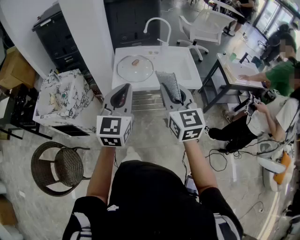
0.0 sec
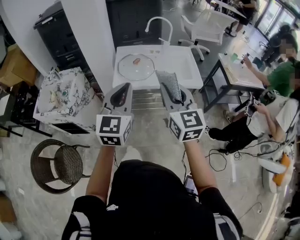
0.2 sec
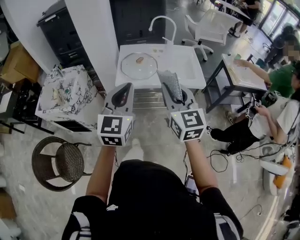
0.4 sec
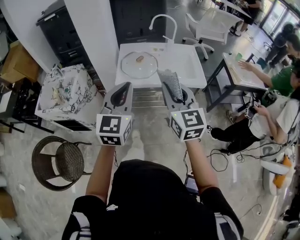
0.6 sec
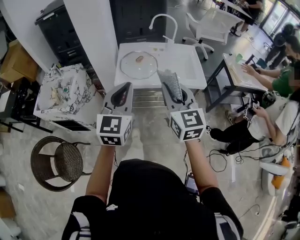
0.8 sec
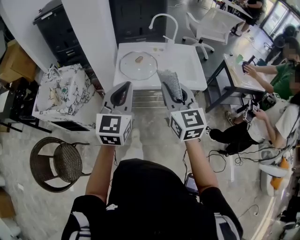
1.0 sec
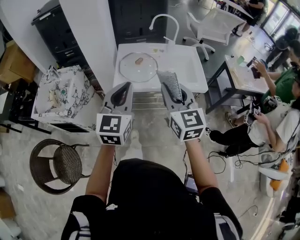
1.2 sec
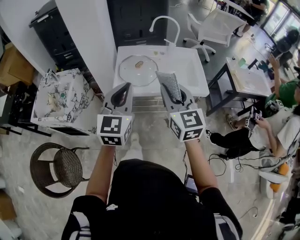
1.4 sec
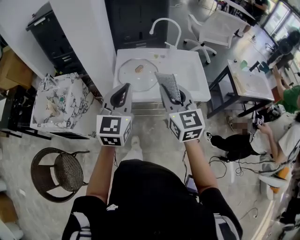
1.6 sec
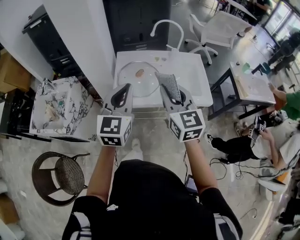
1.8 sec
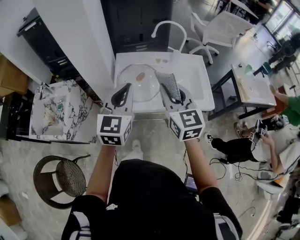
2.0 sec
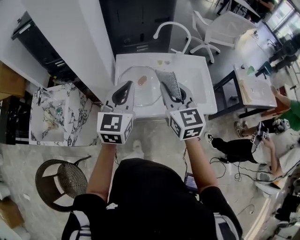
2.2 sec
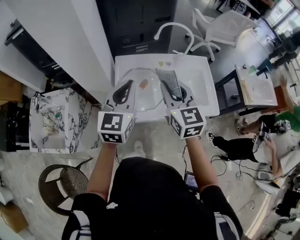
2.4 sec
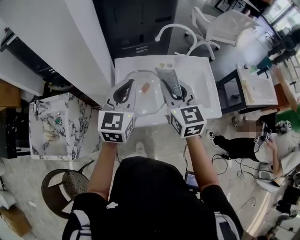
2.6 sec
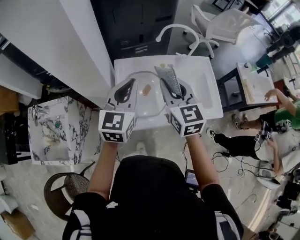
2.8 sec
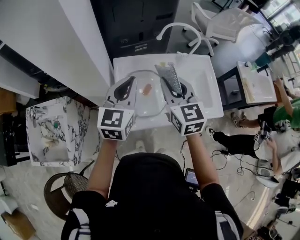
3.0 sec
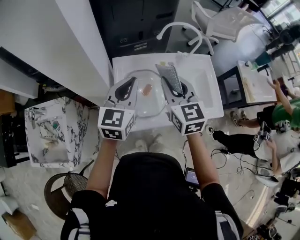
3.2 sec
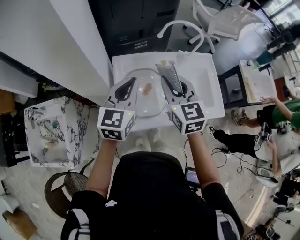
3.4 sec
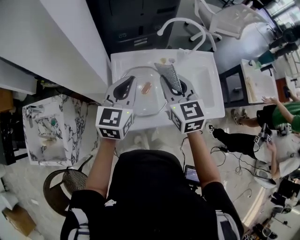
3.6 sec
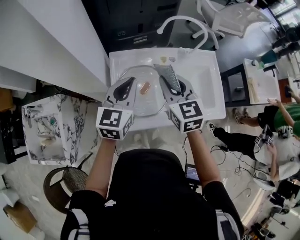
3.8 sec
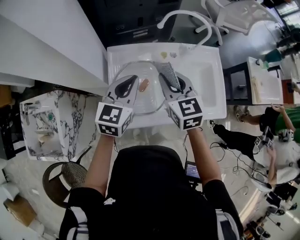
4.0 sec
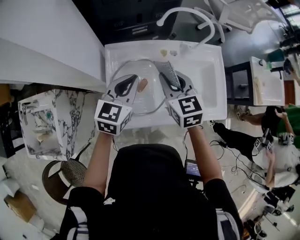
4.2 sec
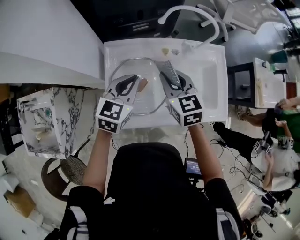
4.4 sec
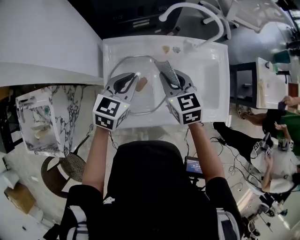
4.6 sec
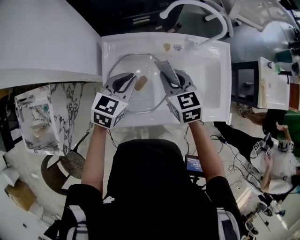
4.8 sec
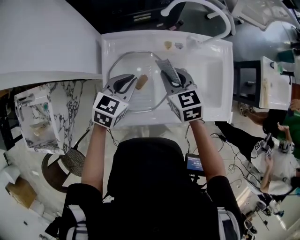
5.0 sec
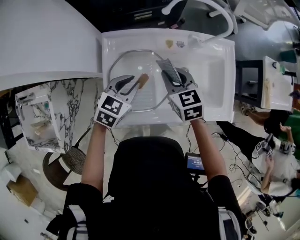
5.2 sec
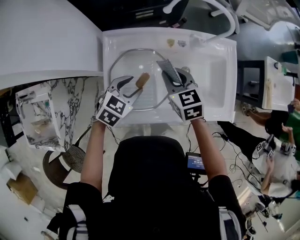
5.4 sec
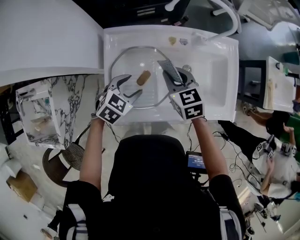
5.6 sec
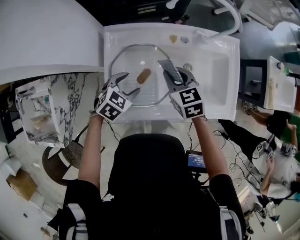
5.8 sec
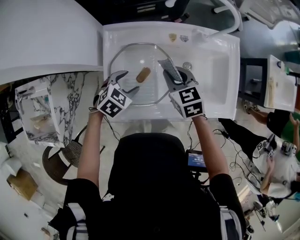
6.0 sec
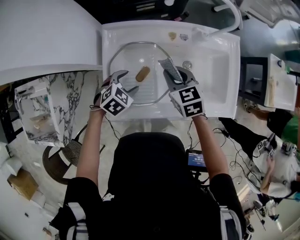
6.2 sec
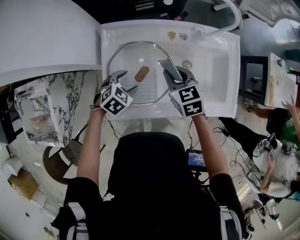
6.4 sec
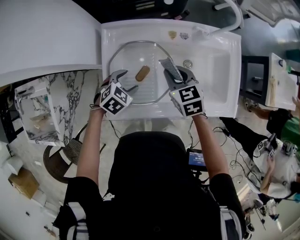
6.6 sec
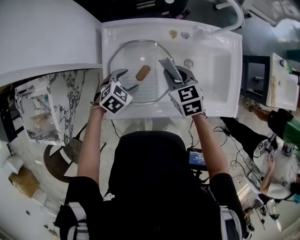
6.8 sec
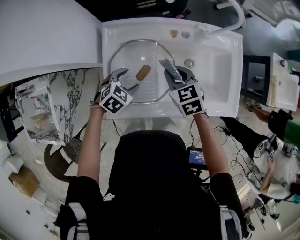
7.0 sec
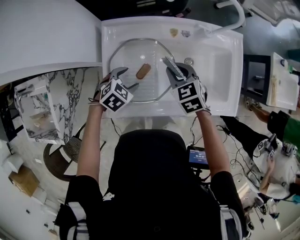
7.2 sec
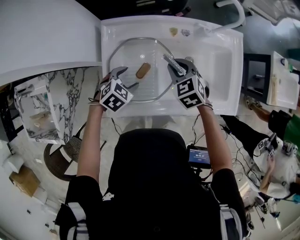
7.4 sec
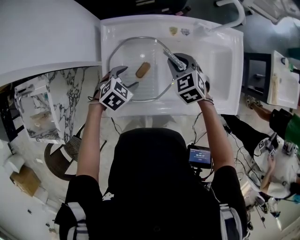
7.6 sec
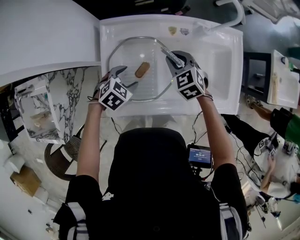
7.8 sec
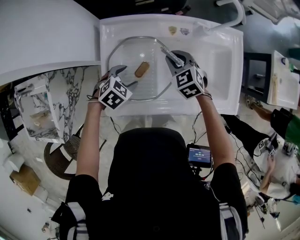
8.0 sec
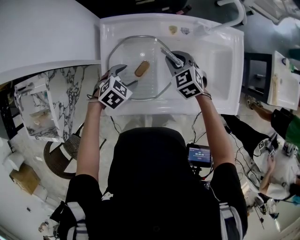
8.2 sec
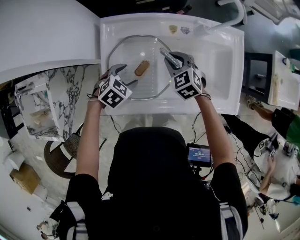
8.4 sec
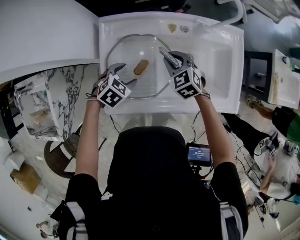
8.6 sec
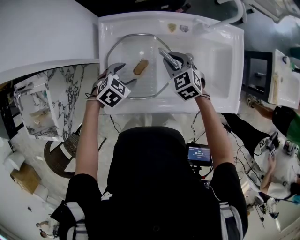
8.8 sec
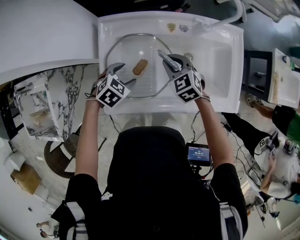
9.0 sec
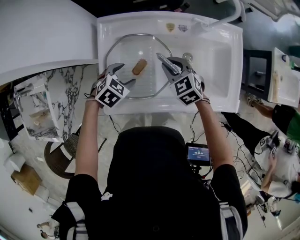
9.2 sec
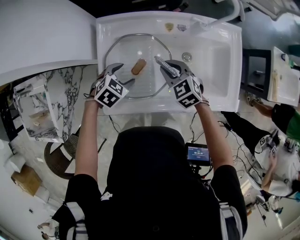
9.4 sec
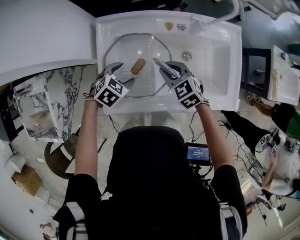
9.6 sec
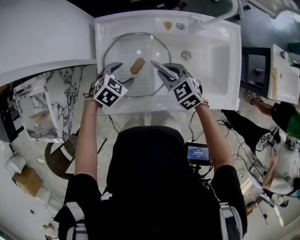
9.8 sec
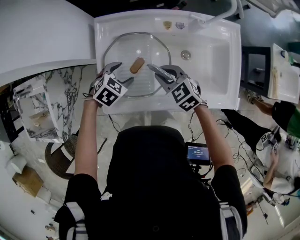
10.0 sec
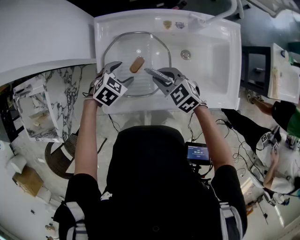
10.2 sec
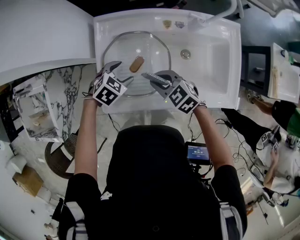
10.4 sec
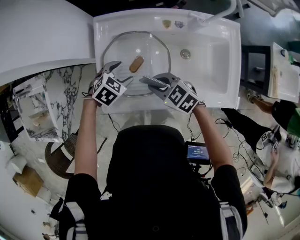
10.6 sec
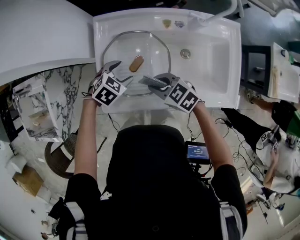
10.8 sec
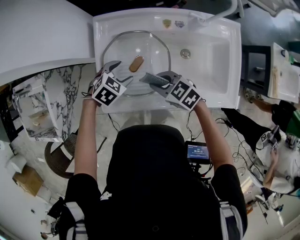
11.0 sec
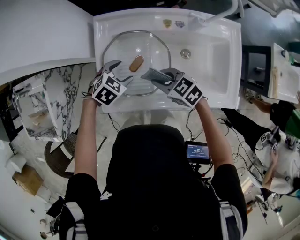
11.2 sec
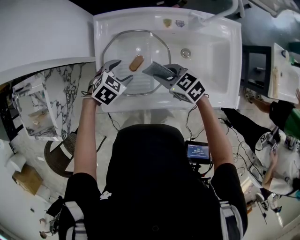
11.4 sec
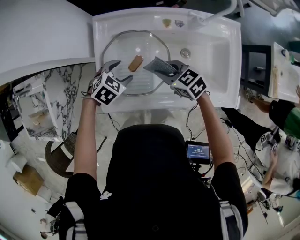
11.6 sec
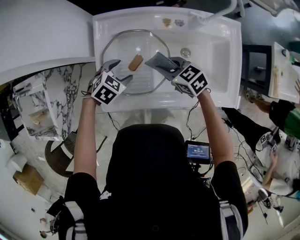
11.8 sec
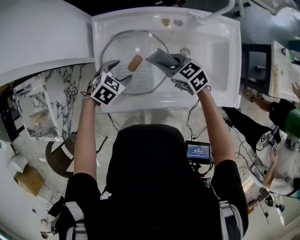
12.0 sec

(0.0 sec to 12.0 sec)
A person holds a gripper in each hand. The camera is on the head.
0.0 sec - 1.6 sec: The two grippers go approximately 15 cm forward.
1.6 sec - 3.0 sec: The two grippers go approximately 30 cm forward.
3.0 sec - 4.4 sec: Both grippers move downward and forward, roughly 15 cm.
4.4 sec - 6.0 sec: The left gripper goes roughly 15 cm downward, tilts its fingers about 30 degrees downward, and opens. Meanwhile the right gripper travels downward by about 10 cm.
6.0 sec - 7.6 sec: The right gripper shifts by some 5 cm, and turns by some 20 degrees.
7.6 sec - 9.0 sec: The grippers make only small movements.
9.0 sec - 10.4 sec: The right gripper is displaced backward by approximately 10 cm, and swivels about 20 degrees.
10.4 sec - 12.0 sec: The right gripper moves about 10 cm.

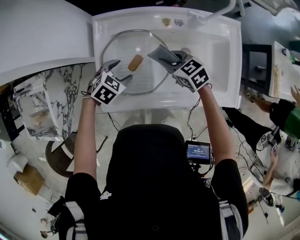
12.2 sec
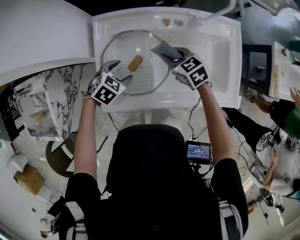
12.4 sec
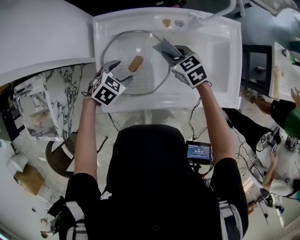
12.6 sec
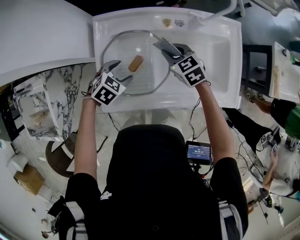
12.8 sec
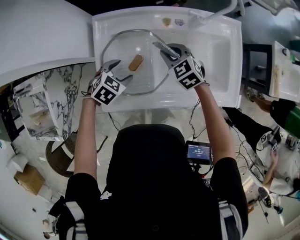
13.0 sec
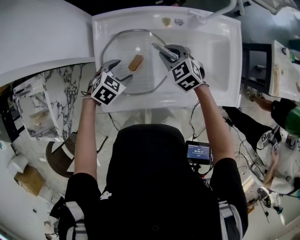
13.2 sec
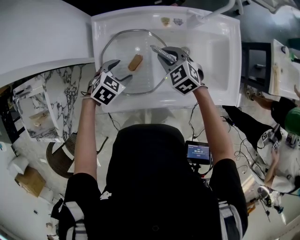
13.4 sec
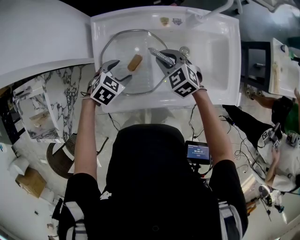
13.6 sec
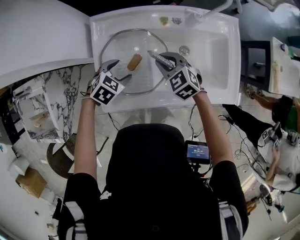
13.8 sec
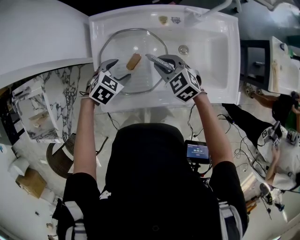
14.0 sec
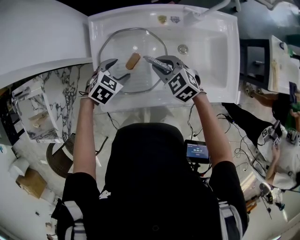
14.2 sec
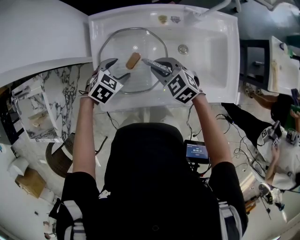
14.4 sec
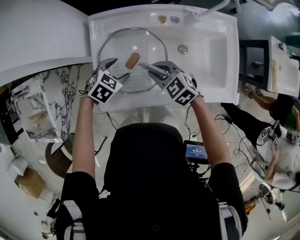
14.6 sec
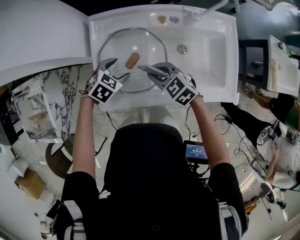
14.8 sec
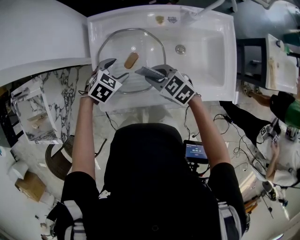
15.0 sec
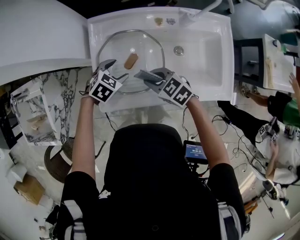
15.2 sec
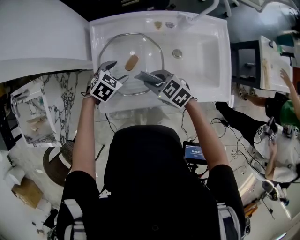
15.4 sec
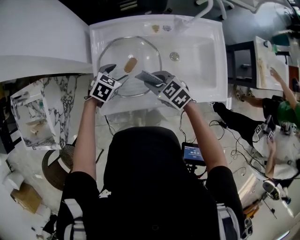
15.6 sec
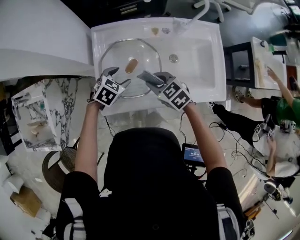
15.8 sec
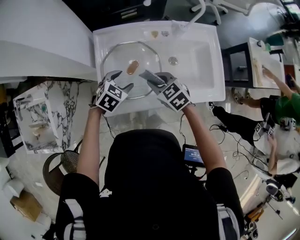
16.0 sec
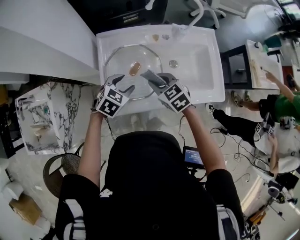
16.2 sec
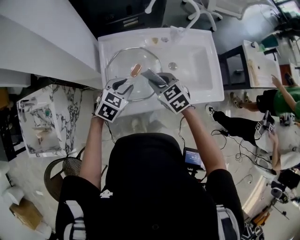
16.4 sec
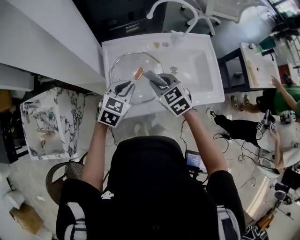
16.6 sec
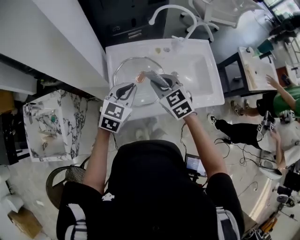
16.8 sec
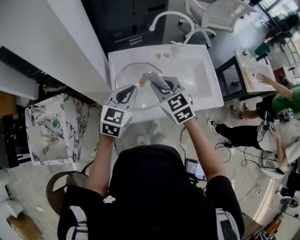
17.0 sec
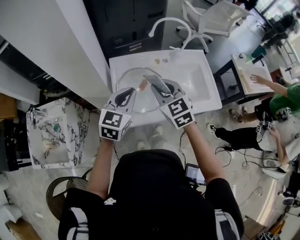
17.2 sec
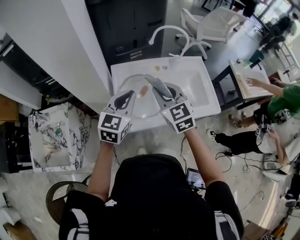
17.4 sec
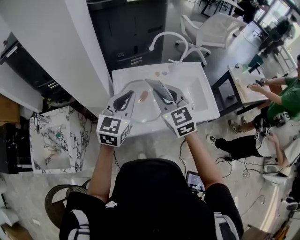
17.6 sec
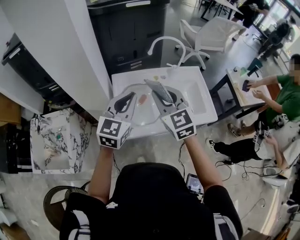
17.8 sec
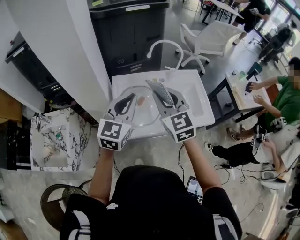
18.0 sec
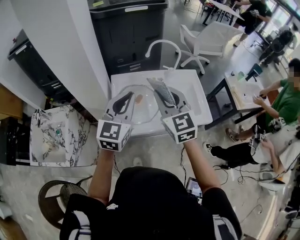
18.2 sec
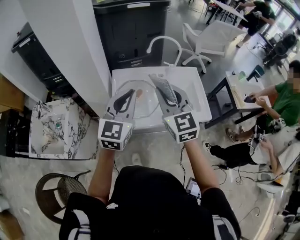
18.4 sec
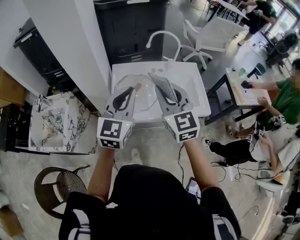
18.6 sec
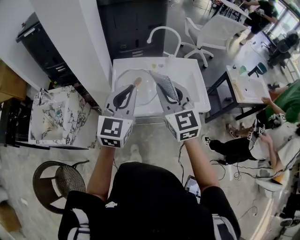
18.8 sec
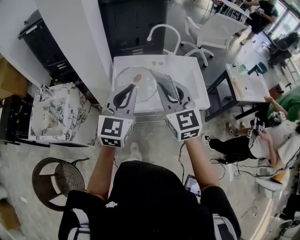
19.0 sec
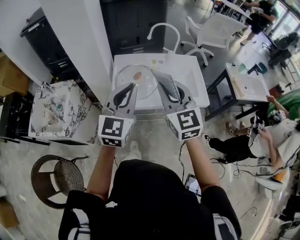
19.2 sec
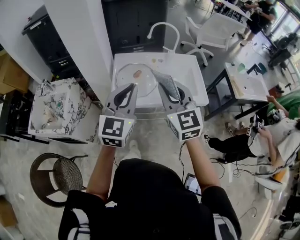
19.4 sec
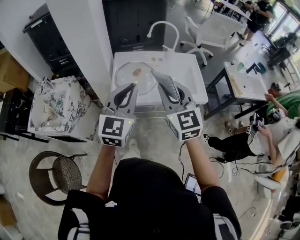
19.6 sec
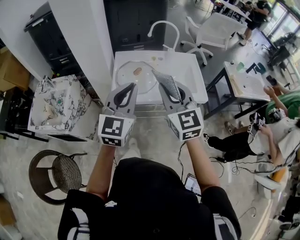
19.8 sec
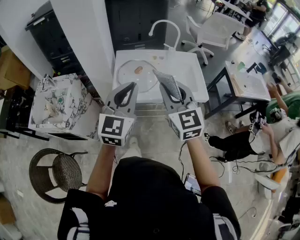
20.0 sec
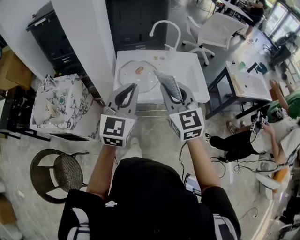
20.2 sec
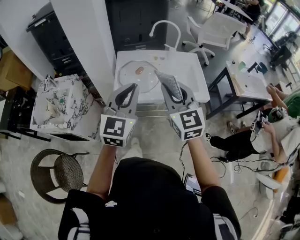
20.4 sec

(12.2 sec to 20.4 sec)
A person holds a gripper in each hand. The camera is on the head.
12.2 sec - 13.8 sec: The right gripper turns by some 20 degrees.
13.8 sec - 15.4 sec: The right gripper moves backward, roughly 10 cm.
15.4 sec - 17.2 sec: Both grippers travel together upward, some 25 cm. The right gripper swivels approximately 40 degrees; the left gripper tilts its fingers some 40 degrees upward, and closes its fingers.
17.2 sec - 18.8 sec: Both grippers travel together backward, upward and to the right, some 20 cm. The left gripper rotates roughly 20 degrees.
18.8 sec - 20.4 sec: The two grippers go about 10 cm backward.

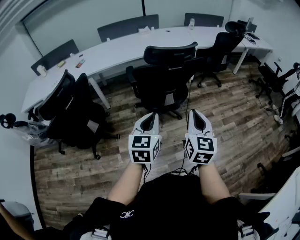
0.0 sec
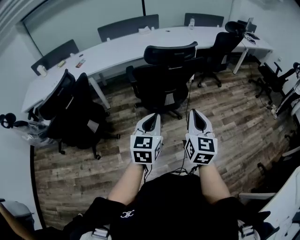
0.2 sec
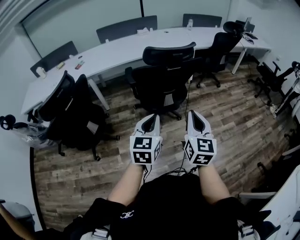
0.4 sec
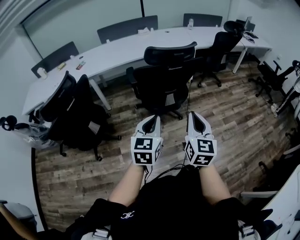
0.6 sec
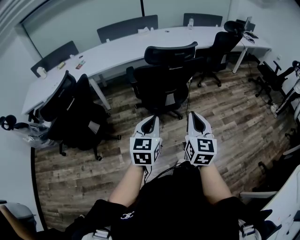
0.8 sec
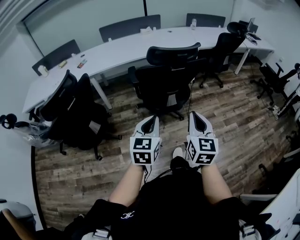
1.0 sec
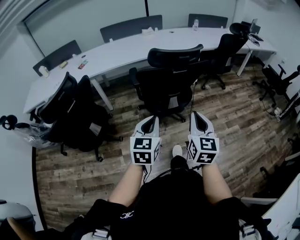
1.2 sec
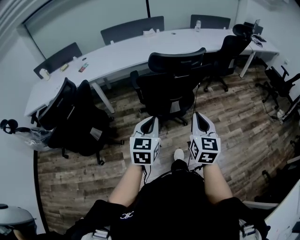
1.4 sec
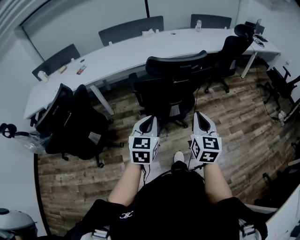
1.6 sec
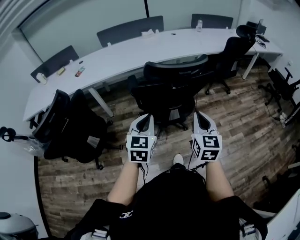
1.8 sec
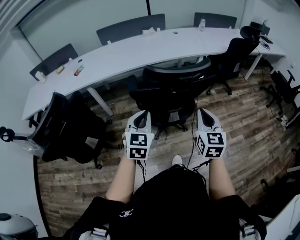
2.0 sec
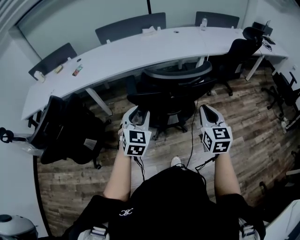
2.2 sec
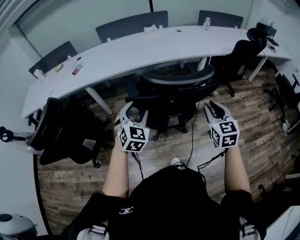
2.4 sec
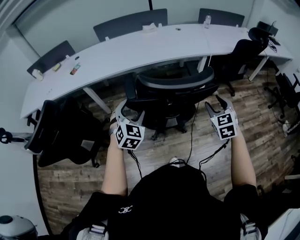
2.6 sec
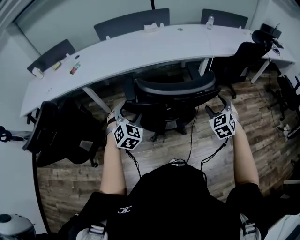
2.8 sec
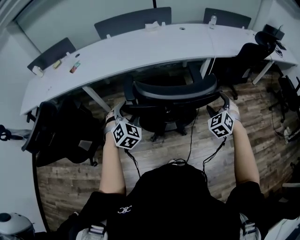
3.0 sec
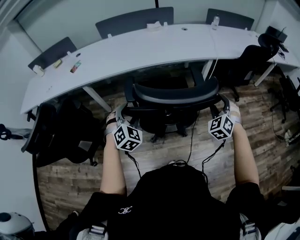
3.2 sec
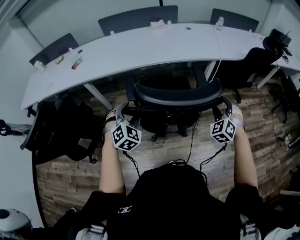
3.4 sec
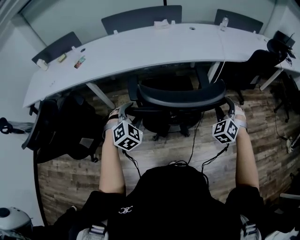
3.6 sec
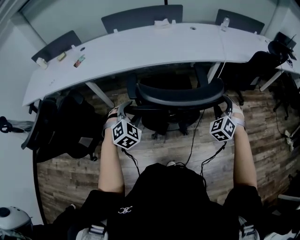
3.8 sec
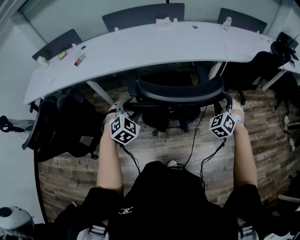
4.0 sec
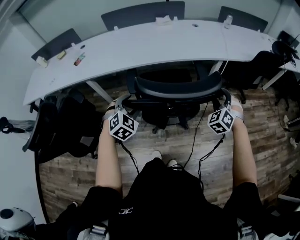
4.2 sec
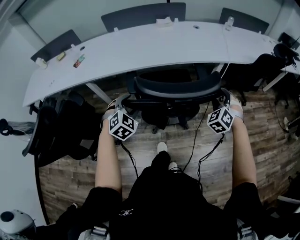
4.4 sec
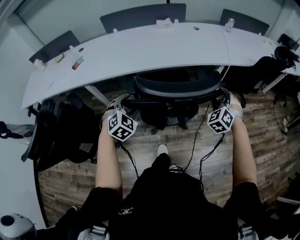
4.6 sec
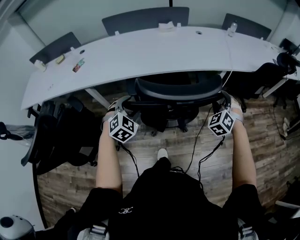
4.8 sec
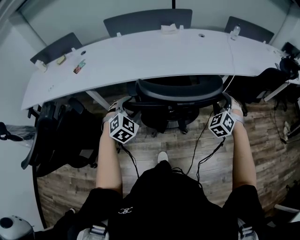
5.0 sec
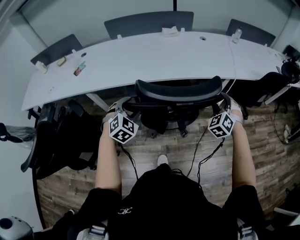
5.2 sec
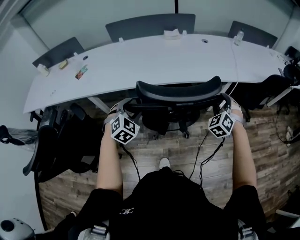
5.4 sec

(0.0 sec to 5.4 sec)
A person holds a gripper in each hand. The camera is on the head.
0.0 sec - 1.4 sec: Both grippers travel together forward, about 10 cm.
1.4 sec - 2.8 sec: The left gripper heads forward, covering roughly 30 cm, turns by some 40 degrees, and opens, while the right gripper shifts roughly 40 cm forward and to the right, rolls counterclockwise, seen from behind, by roughly 40 degrees, and opens.
2.8 sec - 4.0 sec: The right gripper travels forward by some 10 cm. The left gripper shifts some 5 cm forward.
4.0 sec - 5.4 sec: Both grippers travel together forward and to the left, some 20 cm.
